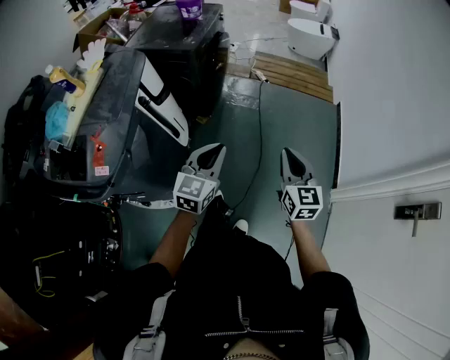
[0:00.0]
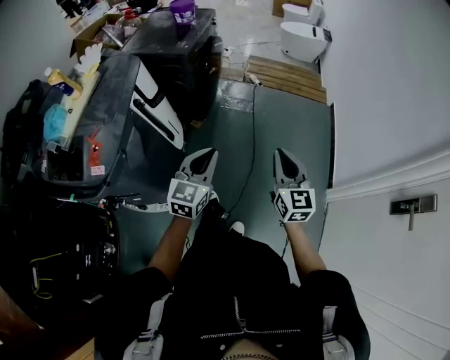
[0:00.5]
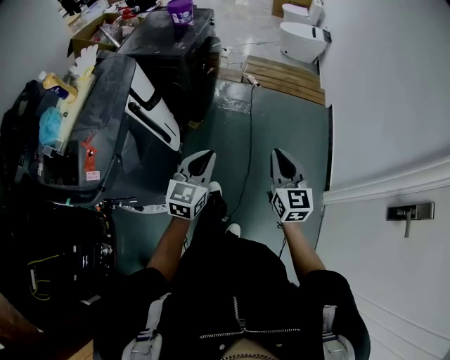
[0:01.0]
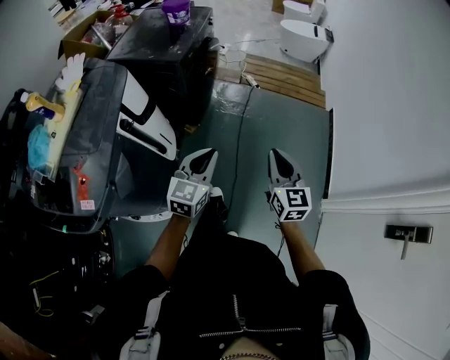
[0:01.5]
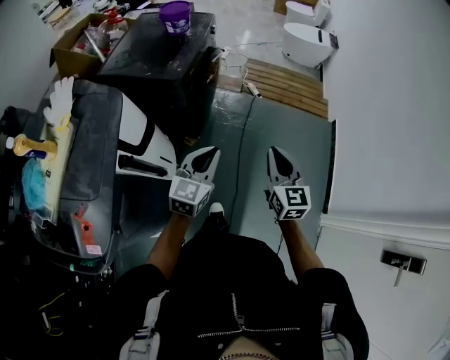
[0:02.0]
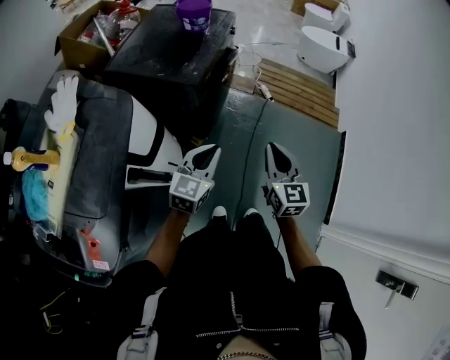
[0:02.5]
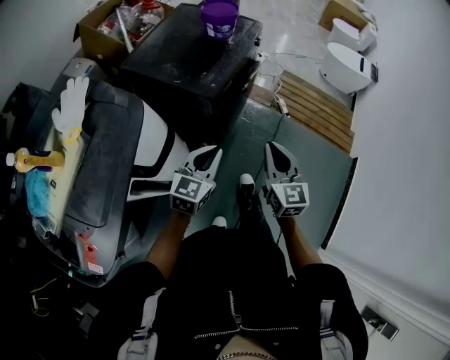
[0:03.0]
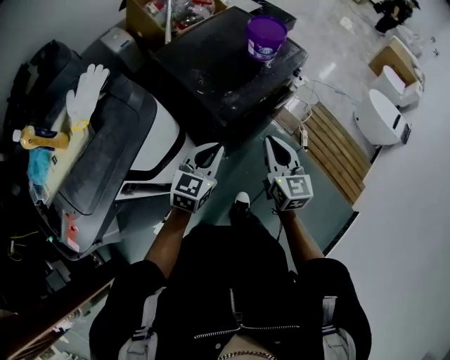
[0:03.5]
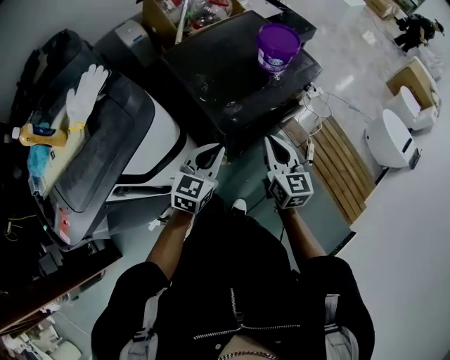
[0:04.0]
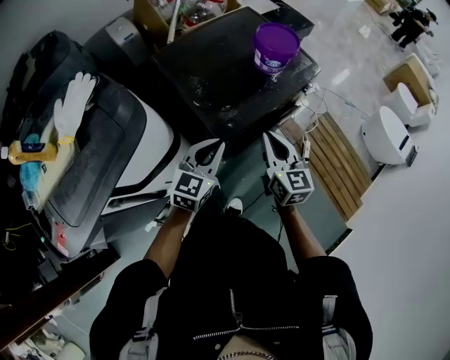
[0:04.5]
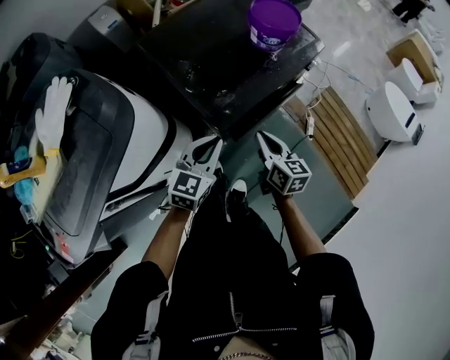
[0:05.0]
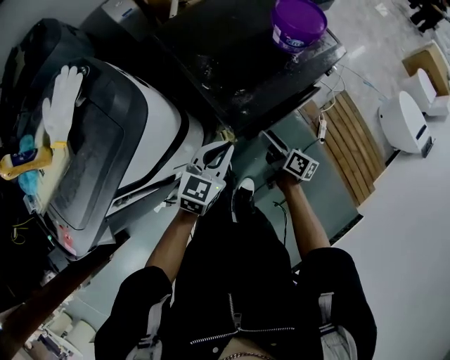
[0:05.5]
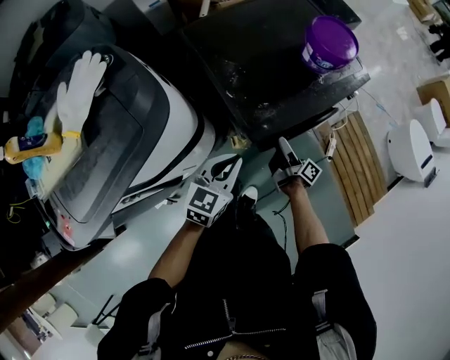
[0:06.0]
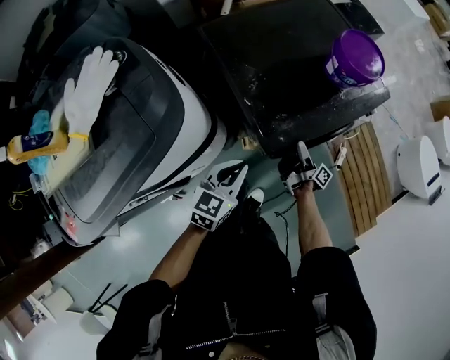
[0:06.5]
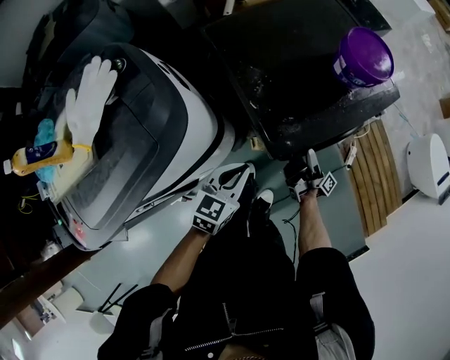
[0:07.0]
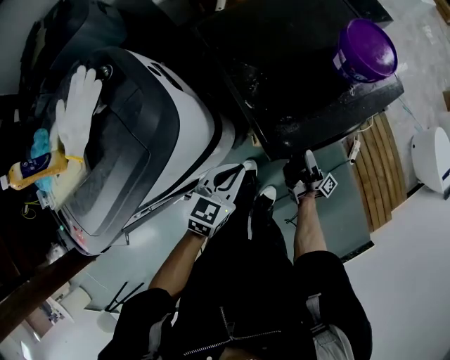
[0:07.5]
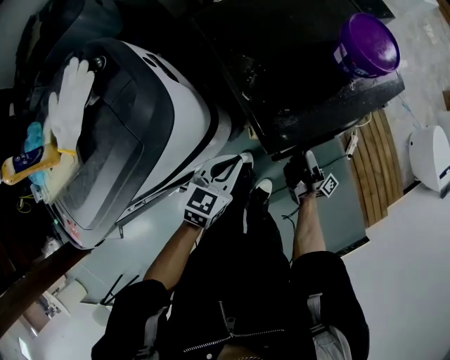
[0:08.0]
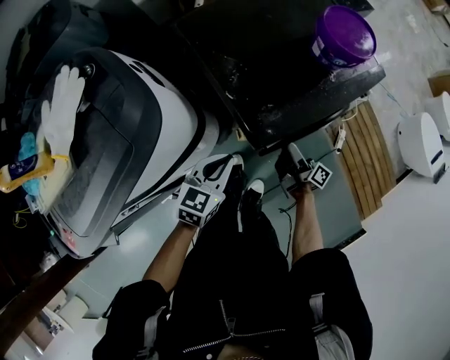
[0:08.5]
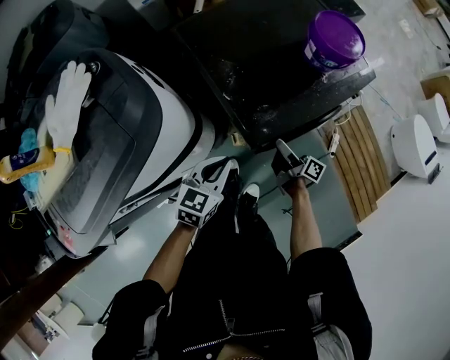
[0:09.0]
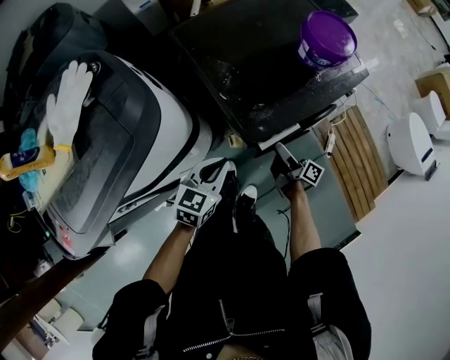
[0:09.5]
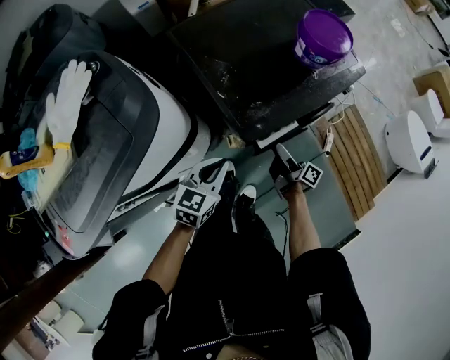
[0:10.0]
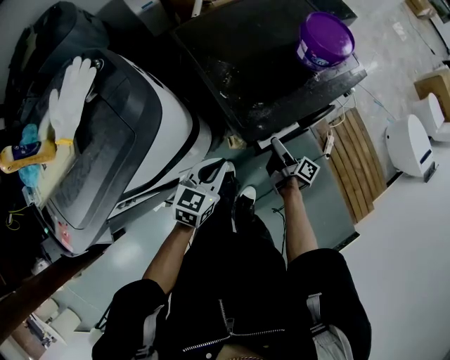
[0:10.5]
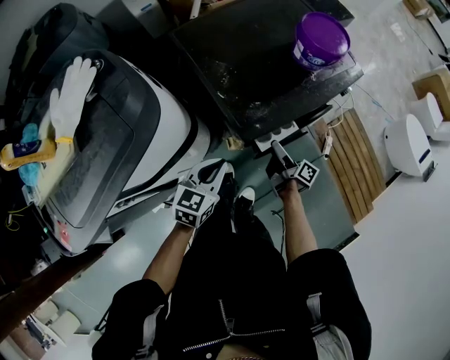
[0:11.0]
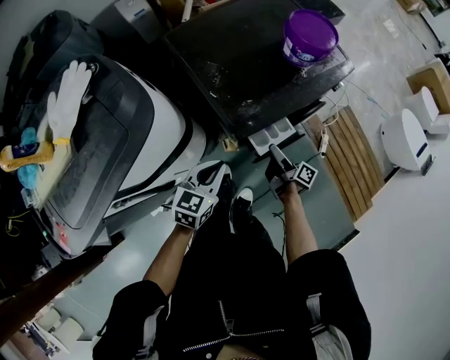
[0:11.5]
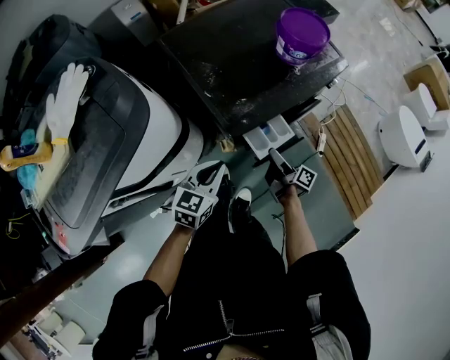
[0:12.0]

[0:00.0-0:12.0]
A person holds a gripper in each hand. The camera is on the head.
0:00.0 to 0:02.0: The two grippers go some 25 cm forward.
0:02.0 to 0:04.0: The left gripper shifts by roughly 35 cm, and turns by roughly 40 degrees. The right gripper moves roughly 40 cm, and turns by roughly 40 degrees.
0:04.0 to 0:06.0: The right gripper shifts roughly 25 cm downward, rotates around the line of its fingers by about 70 degrees, clockwise from behind, and opens its fingers; the left gripper is displaced downward by approximately 5 cm.
0:06.0 to 0:08.0: The left gripper changes place by roughly 5 cm, while the right gripper changes its angle by roughly 20 degrees.
0:08.0 to 0:10.0: The right gripper changes its angle by about 30 degrees.
0:10.0 to 0:12.0: The grippers stay close to where they were, moving slightly.

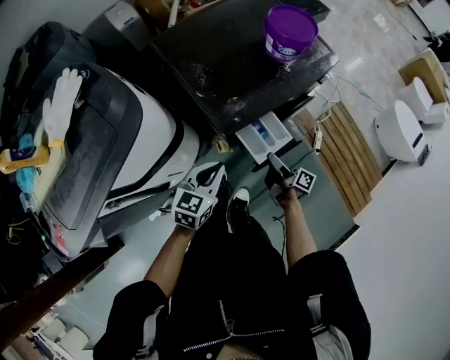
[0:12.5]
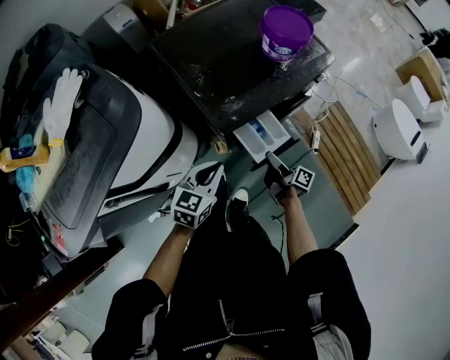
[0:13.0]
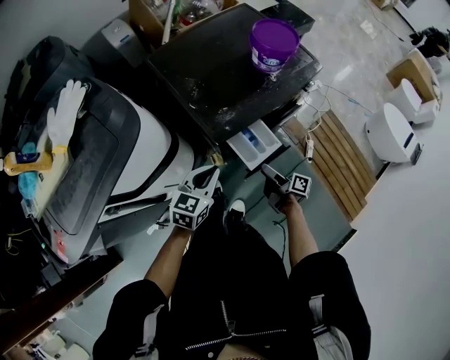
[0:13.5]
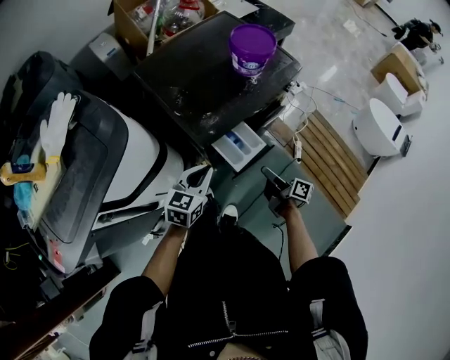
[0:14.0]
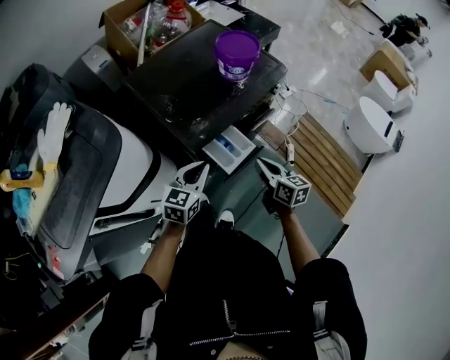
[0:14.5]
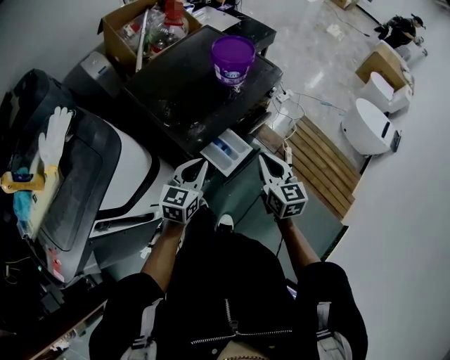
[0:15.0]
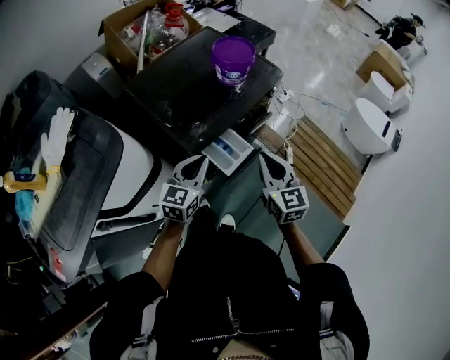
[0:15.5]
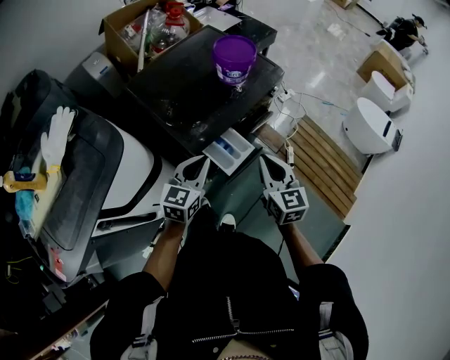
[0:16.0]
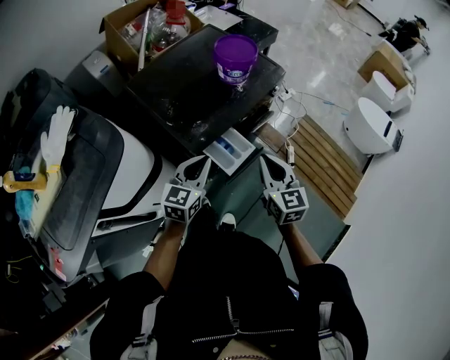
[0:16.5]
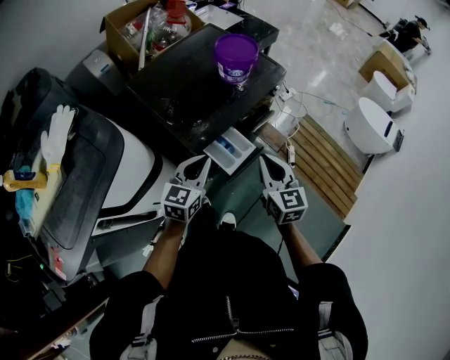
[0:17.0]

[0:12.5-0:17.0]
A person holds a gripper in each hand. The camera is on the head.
0:12.5 to 0:14.5: The right gripper moves upward, some 15 cm, twists roughly 50 degrees counterclockwise, seen from behind, and closes its fingers; the left gripper ends up about 5 cm from where it was.
0:14.5 to 0:17.0: The right gripper shifts approximately 10 cm upward, and rotates approximately 30 degrees.

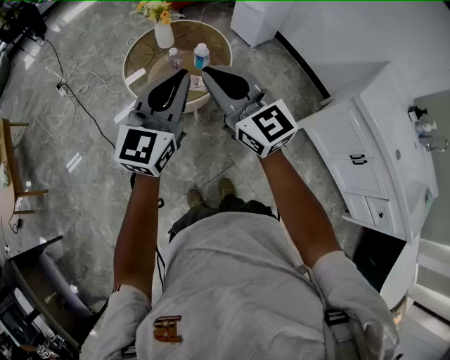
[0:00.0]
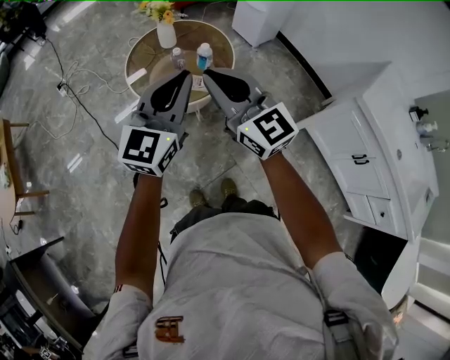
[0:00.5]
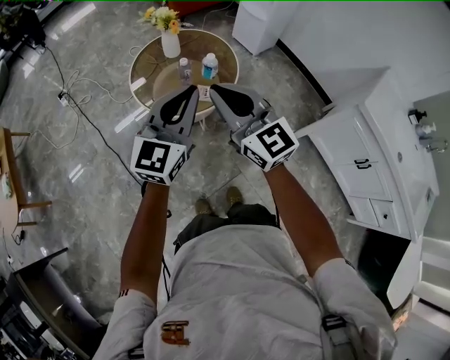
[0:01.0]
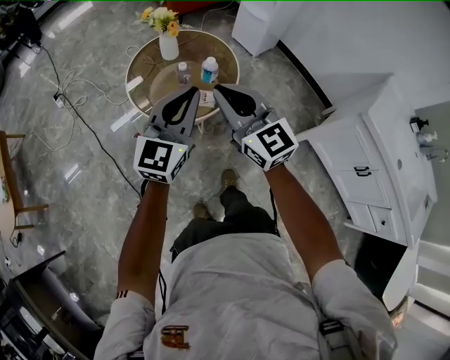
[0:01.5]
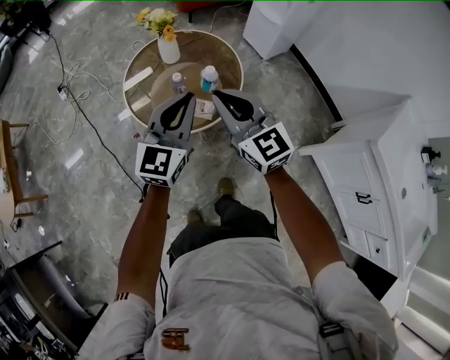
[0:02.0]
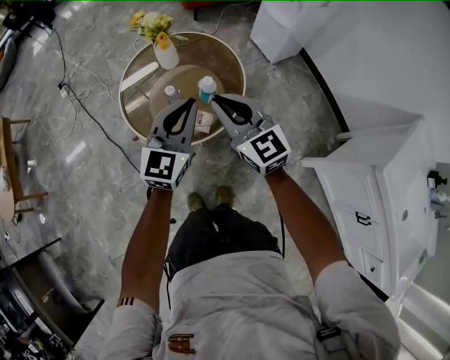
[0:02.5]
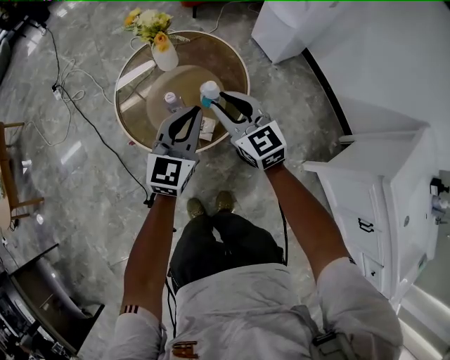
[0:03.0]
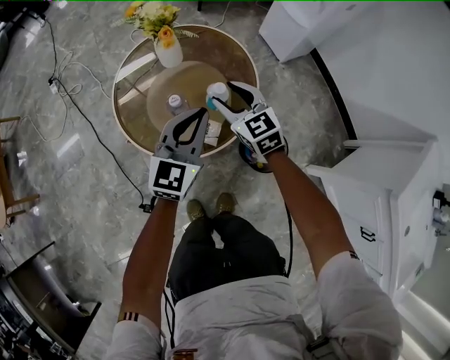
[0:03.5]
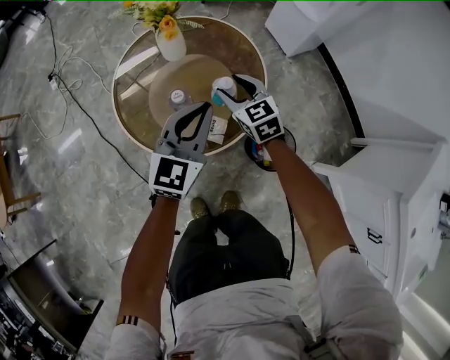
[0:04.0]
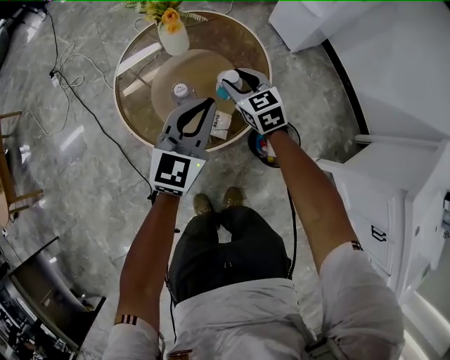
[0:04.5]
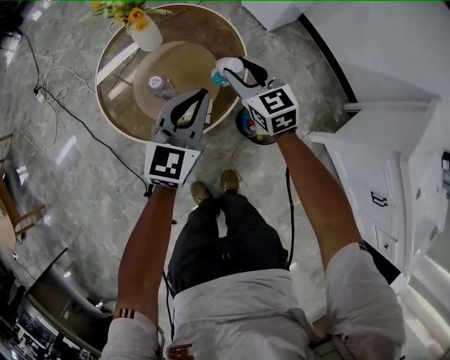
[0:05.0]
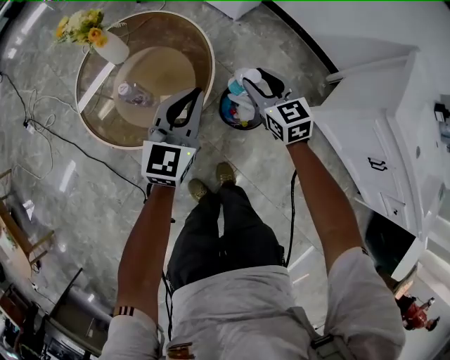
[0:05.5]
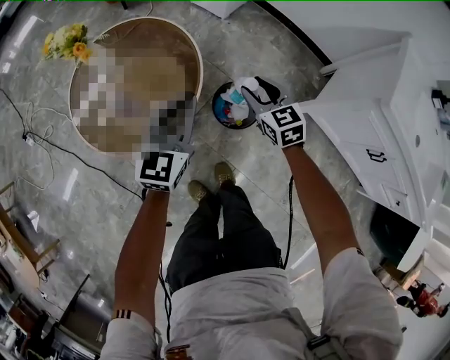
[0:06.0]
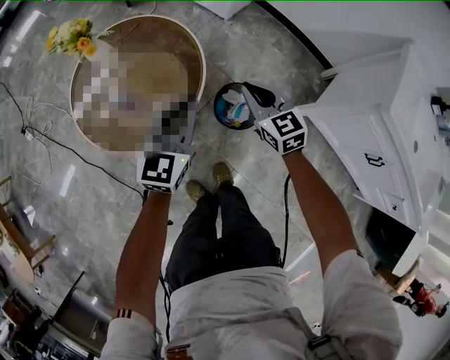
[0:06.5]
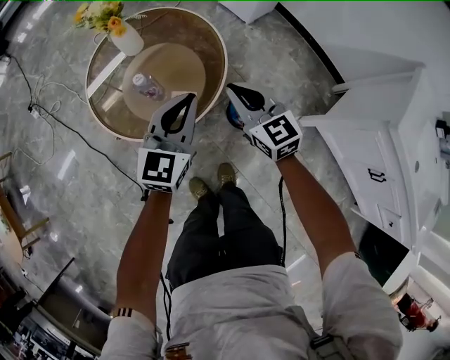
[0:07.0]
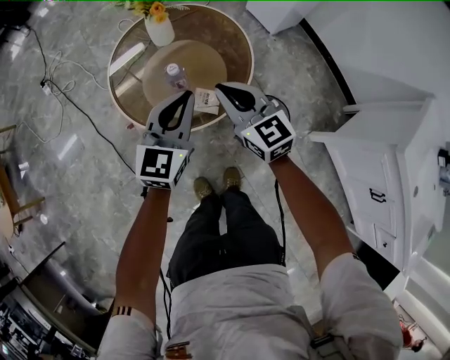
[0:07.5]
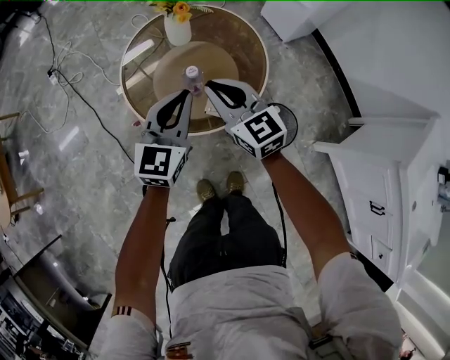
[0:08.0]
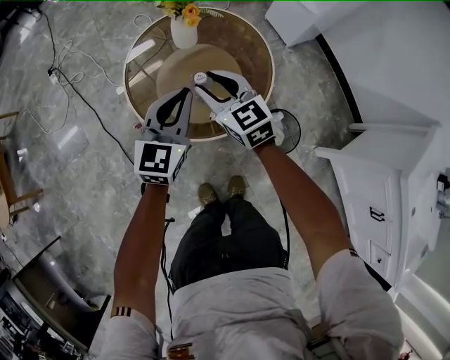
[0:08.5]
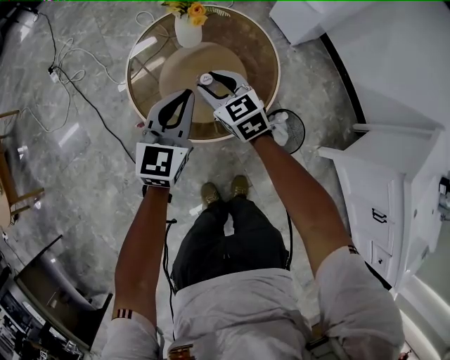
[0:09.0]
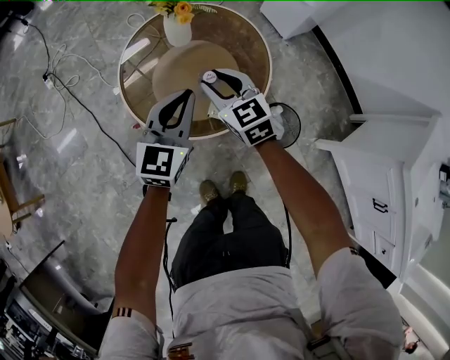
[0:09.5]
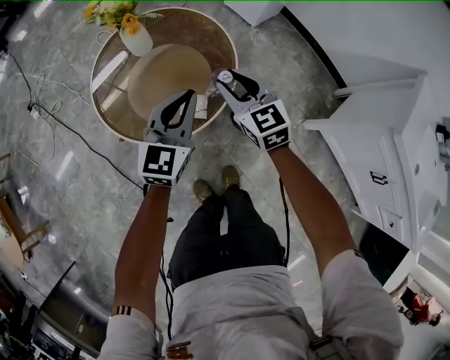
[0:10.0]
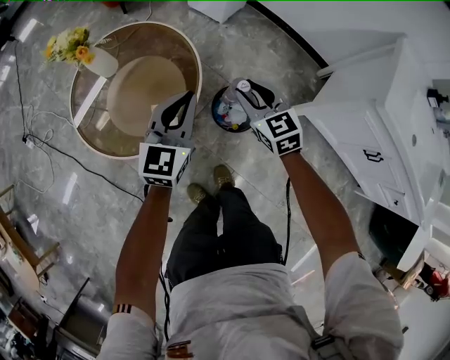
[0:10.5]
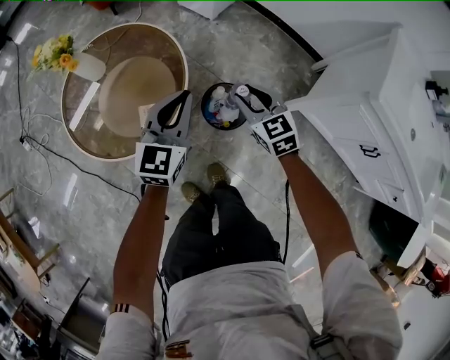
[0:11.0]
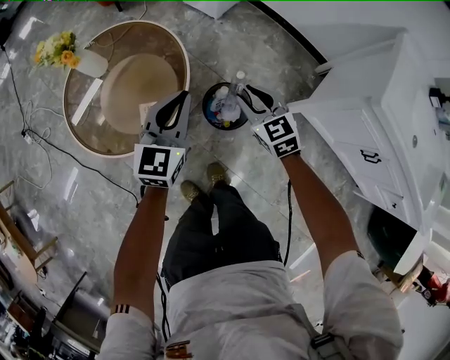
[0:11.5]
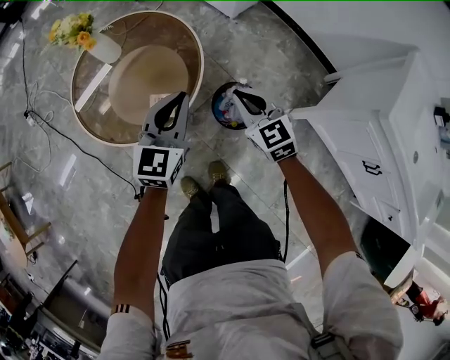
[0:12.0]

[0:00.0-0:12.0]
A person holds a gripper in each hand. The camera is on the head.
0:00.0 to 0:02.0: The grippers both shift forward and downward by about 20 cm.
0:02.0 to 0:04.0: The right gripper shifts roughly 40 cm downward and forward, turns by about 30 degrees, and opens up. Meanwhile the left gripper is displaced downward and forward by about 25 cm.
0:04.0 to 0:06.0: The left gripper moves to the right and backward, about 15 cm. The right gripper goes about 30 cm to the right and backward, and rotates approximately 30 degrees.
0:06.0 to 0:08.0: The right gripper ends up approximately 35 cm from where it was, rotates about 40 degrees, and closes up. Meanwhile the left gripper changes place by some 20 cm, and changes its angle by some 20 degrees.
0:08.0 to 0:10.0: The grippers both shift to the right by roughly 10 cm. The right gripper changes its angle by roughly 20 degrees, and opens up.
0:10.0 to 0:12.0: Both grippers travel together to the right, about 15 cm. The right gripper closes.
